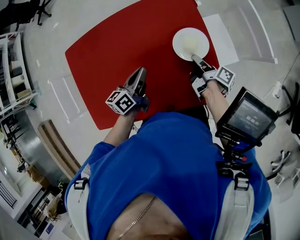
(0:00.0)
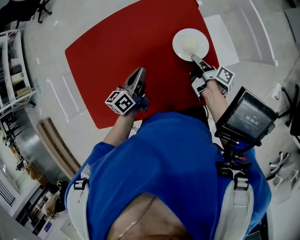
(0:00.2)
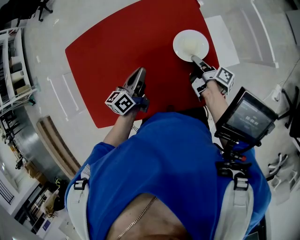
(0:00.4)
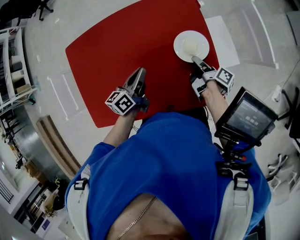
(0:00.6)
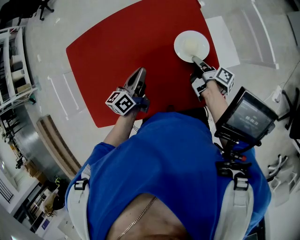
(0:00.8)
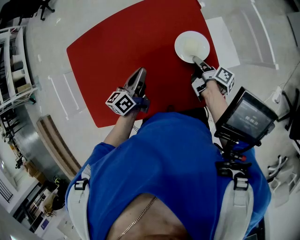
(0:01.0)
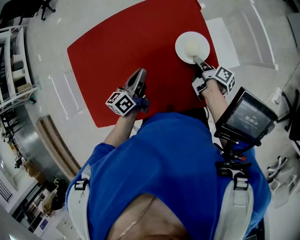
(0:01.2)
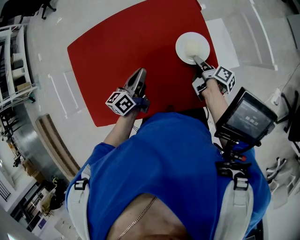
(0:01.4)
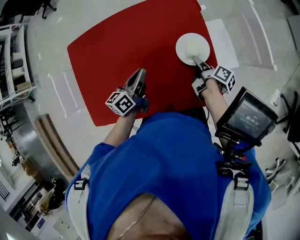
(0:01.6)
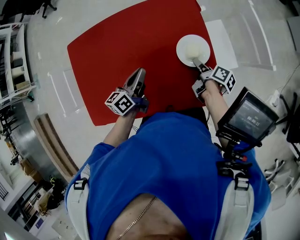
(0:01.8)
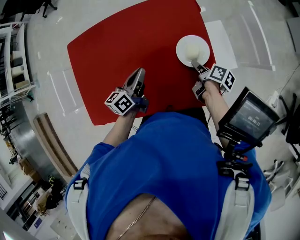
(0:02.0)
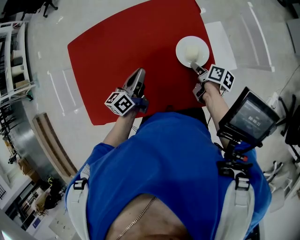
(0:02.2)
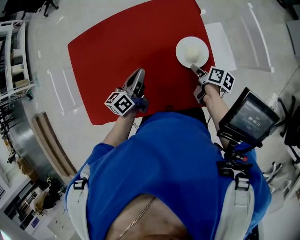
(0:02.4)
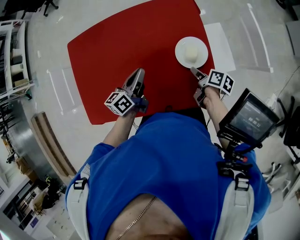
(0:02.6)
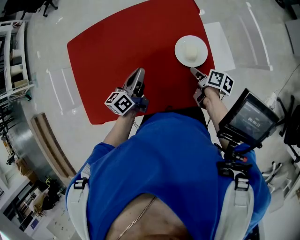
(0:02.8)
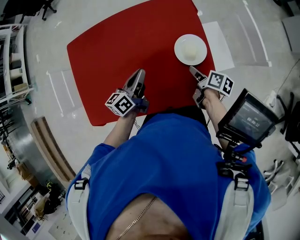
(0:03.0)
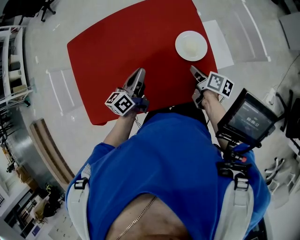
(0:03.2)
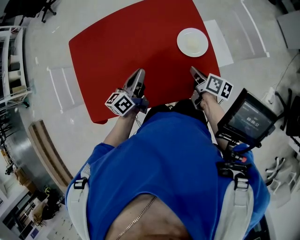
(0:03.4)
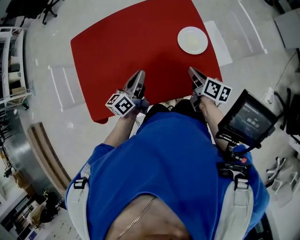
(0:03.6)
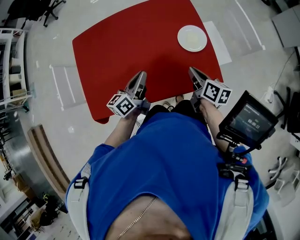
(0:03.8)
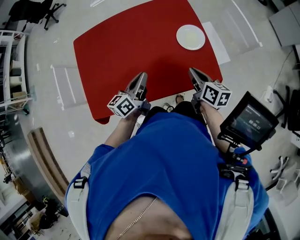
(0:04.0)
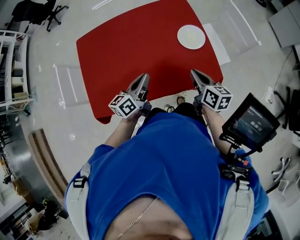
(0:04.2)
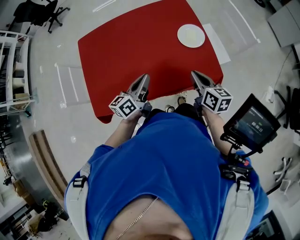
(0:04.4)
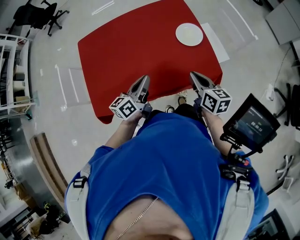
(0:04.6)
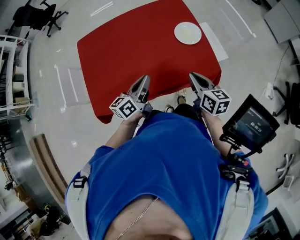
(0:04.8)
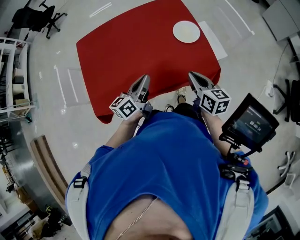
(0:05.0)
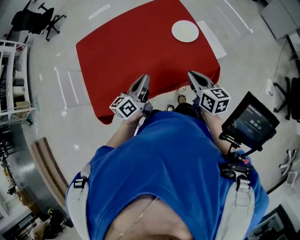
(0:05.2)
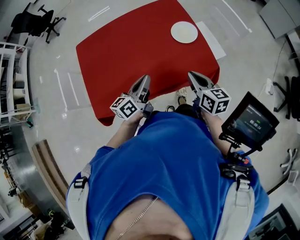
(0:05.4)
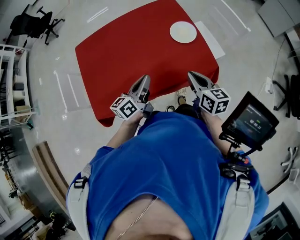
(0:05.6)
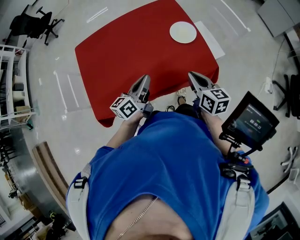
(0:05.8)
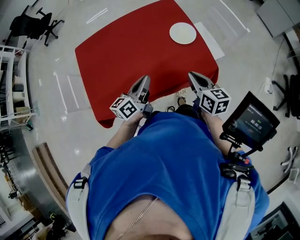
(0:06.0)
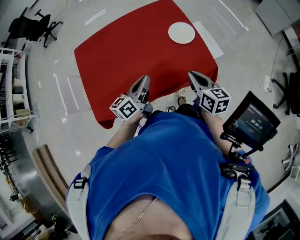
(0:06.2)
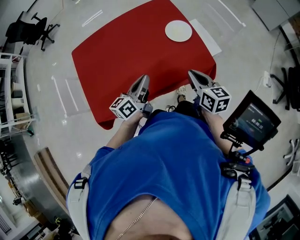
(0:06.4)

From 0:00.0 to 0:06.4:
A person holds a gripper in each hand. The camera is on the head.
From 0:03.2 to 0:04.8: The left gripper changes place by about 5 cm.

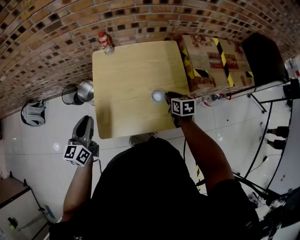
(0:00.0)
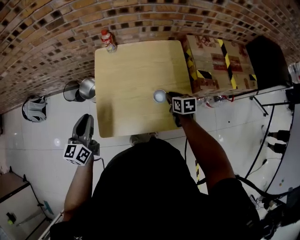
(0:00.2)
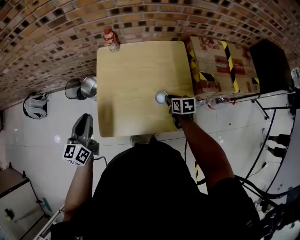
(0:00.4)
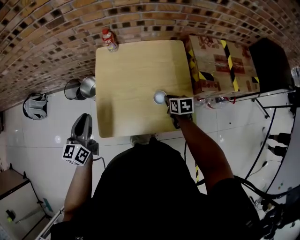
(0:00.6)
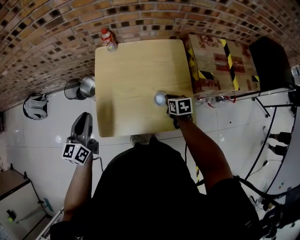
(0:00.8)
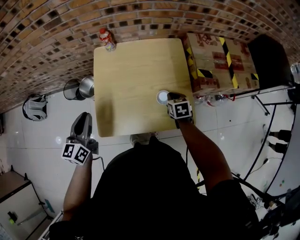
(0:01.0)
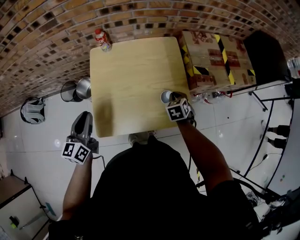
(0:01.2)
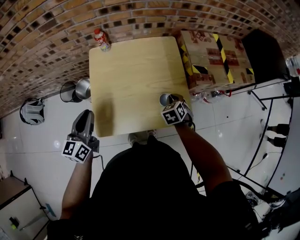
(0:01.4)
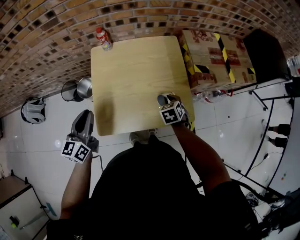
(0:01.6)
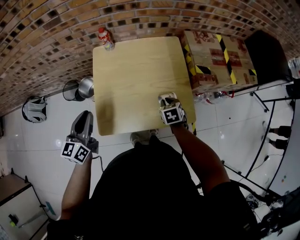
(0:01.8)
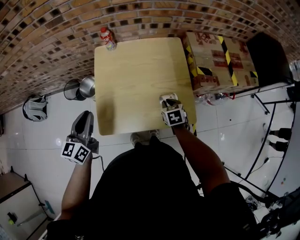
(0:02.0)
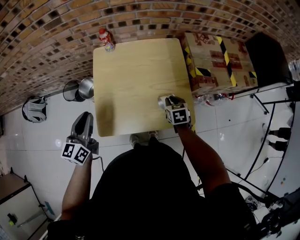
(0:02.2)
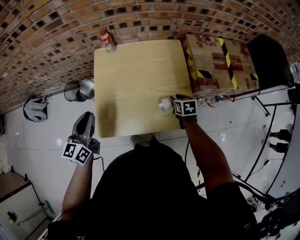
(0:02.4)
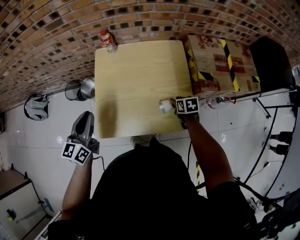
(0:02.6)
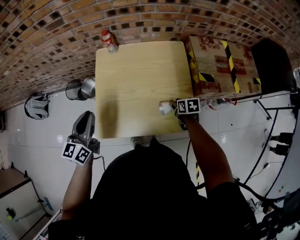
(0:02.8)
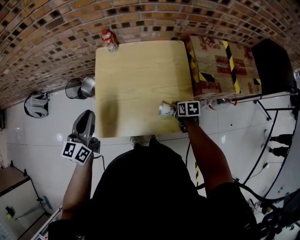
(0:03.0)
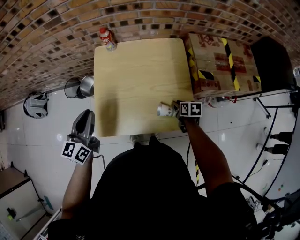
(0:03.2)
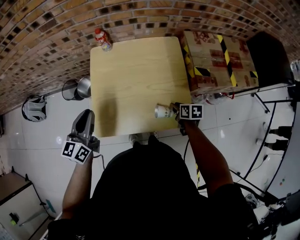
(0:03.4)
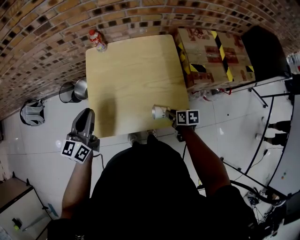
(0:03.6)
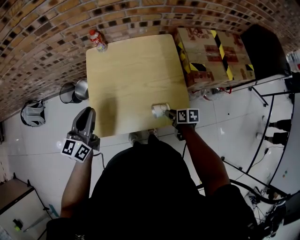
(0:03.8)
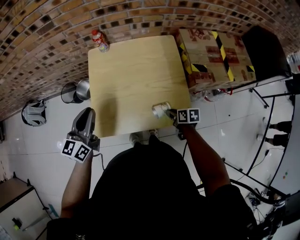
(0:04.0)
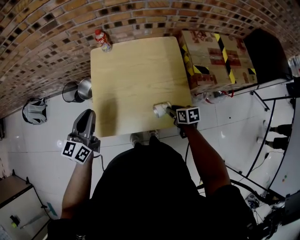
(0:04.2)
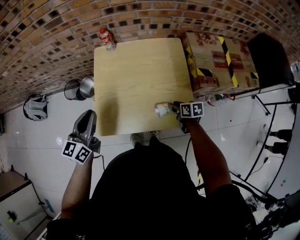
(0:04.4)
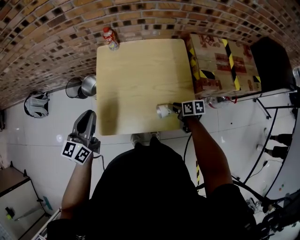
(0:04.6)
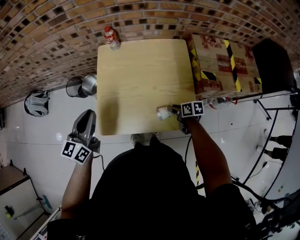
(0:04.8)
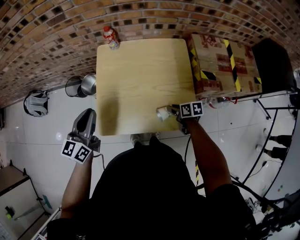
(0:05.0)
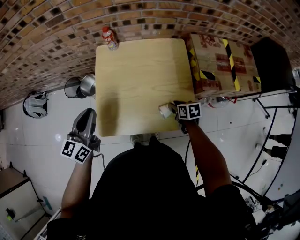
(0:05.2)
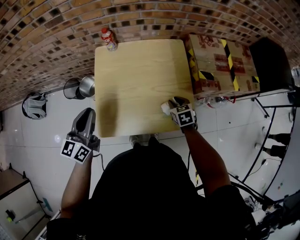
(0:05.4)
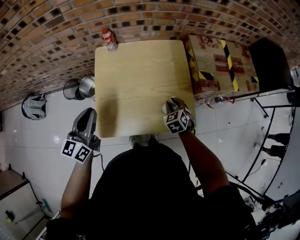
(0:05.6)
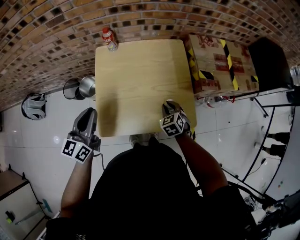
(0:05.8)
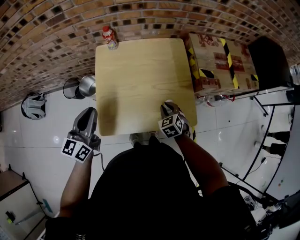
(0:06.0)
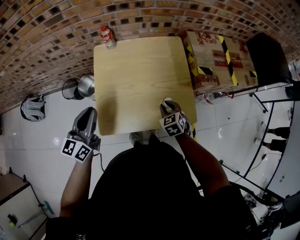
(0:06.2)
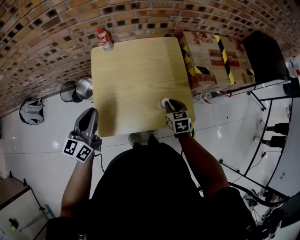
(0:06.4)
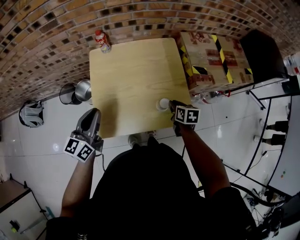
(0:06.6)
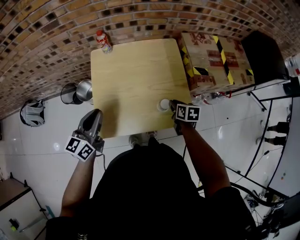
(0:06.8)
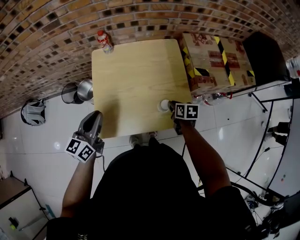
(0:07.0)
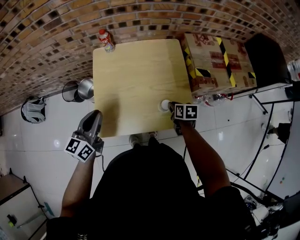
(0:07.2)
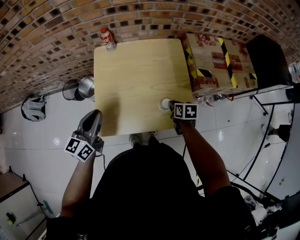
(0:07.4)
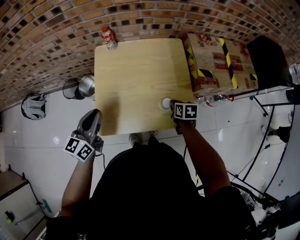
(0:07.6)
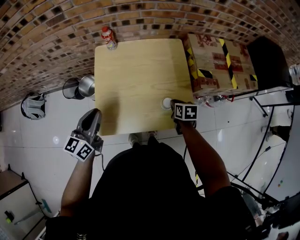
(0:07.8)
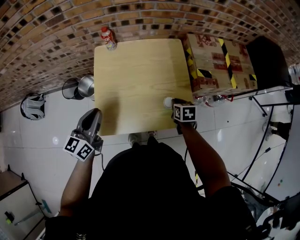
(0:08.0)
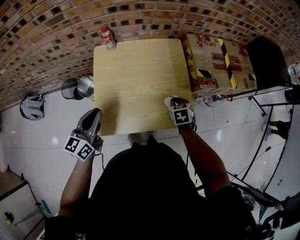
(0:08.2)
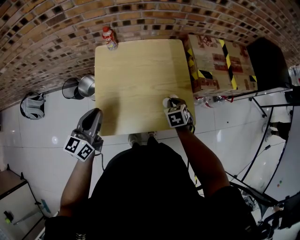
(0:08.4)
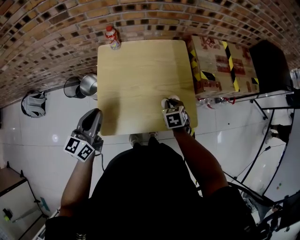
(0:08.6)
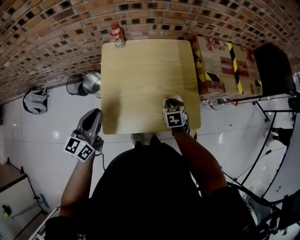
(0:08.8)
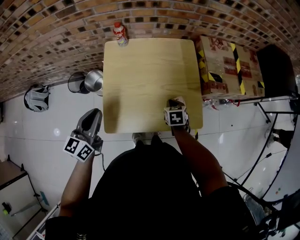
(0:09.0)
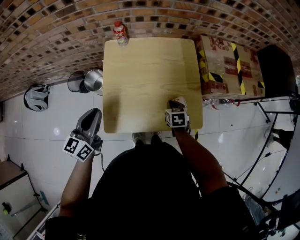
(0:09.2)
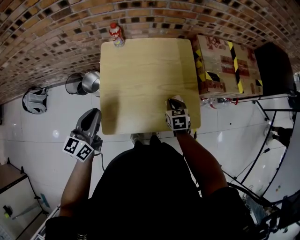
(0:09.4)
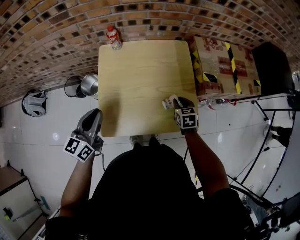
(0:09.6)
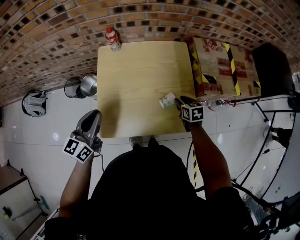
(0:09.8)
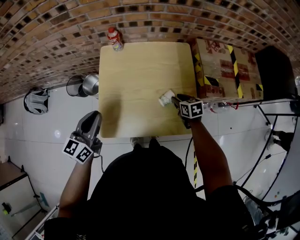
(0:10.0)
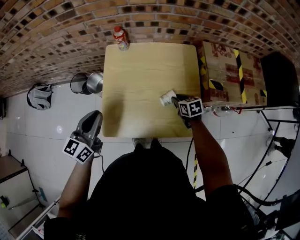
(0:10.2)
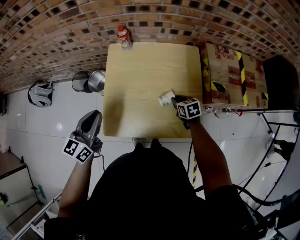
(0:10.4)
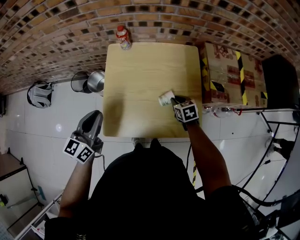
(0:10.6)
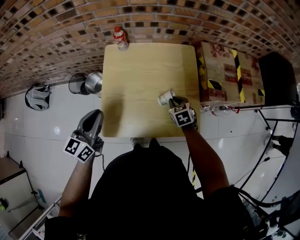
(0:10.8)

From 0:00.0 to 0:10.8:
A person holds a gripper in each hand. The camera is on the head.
From 0:00.0 to 0:01.6: The right gripper turns by some 30 degrees.
From 0:01.6 to 0:03.0: The right gripper is displaced downward and to the right by some 10 cm, and rotates some 30 degrees.
From 0:03.0 to 0:04.6: The right gripper travels backward and back again, about 10 cm each way.
From 0:04.6 to 0:06.2: The right gripper shifts by about 10 cm, twists roughly 40 degrees counterclockwise, seen from behind, and closes.
From 0:06.2 to 0:07.8: The right gripper travels to the right by roughly 5 cm, and rotates approximately 40 degrees.
From 0:07.8 to 0:09.2: The right gripper travels to the left by approximately 5 cm.
From 0:09.2 to 0:10.8: The right gripper reaches some 10 cm to the right, then returns, and opens, then closes once more.

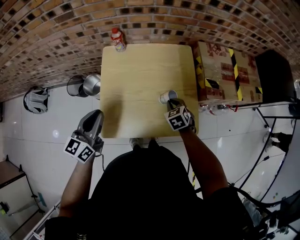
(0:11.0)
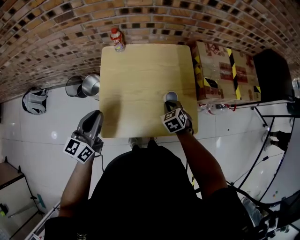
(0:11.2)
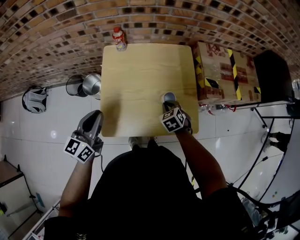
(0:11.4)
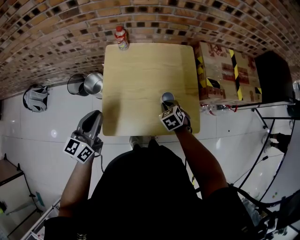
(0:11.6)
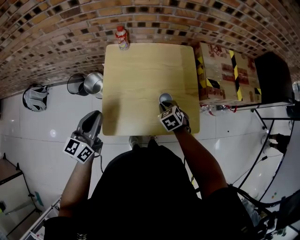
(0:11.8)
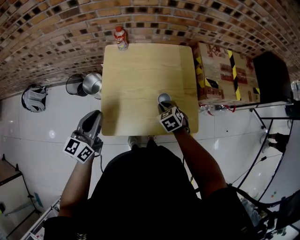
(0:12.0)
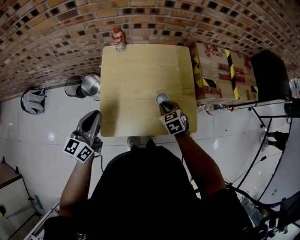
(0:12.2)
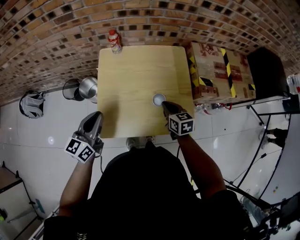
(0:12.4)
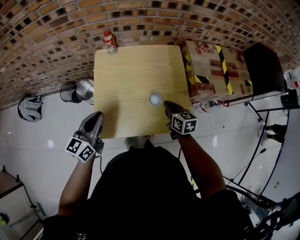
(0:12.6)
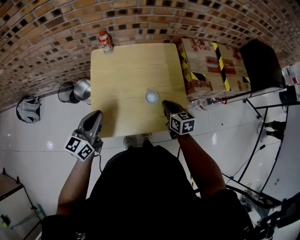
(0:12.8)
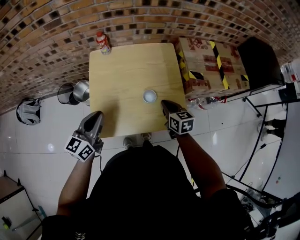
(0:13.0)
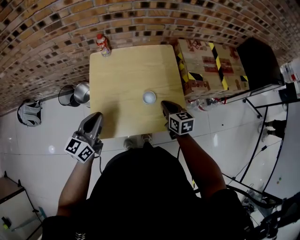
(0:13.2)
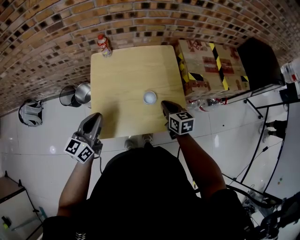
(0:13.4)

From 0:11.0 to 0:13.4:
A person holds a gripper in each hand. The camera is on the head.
From 0:11.0 to 0:12.2: The right gripper changes place by roughly 5 cm.
From 0:12.2 to 0:13.4: Both grippers move to the right, approximately 5 cm. The right gripper swivels approximately 30 degrees.

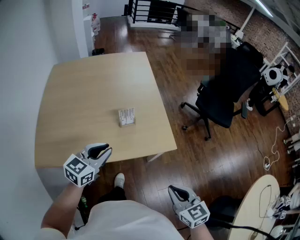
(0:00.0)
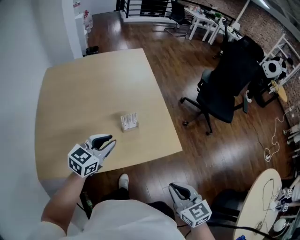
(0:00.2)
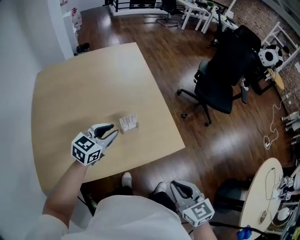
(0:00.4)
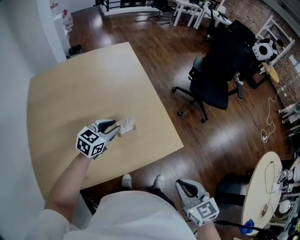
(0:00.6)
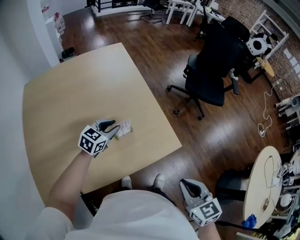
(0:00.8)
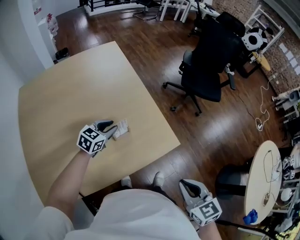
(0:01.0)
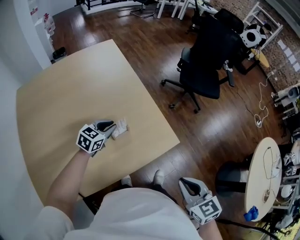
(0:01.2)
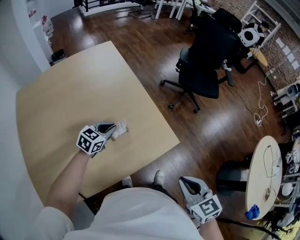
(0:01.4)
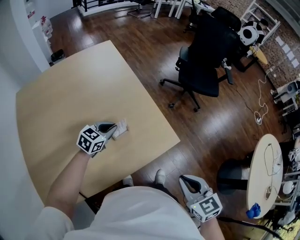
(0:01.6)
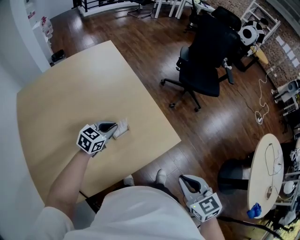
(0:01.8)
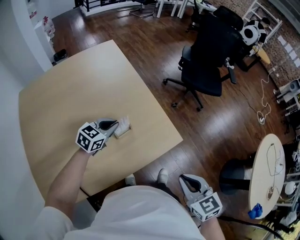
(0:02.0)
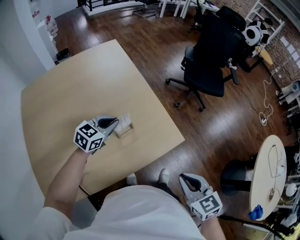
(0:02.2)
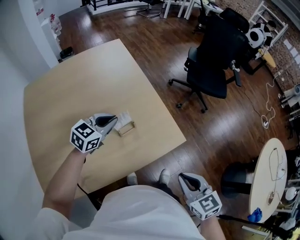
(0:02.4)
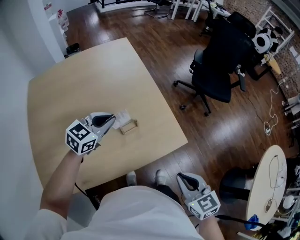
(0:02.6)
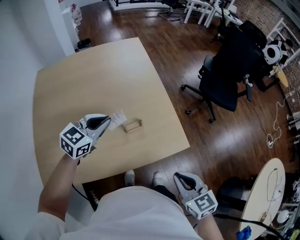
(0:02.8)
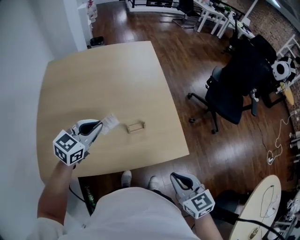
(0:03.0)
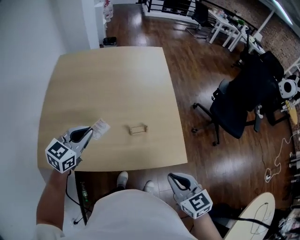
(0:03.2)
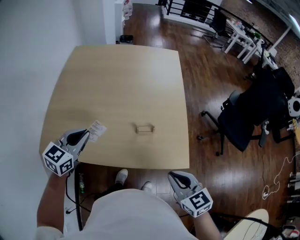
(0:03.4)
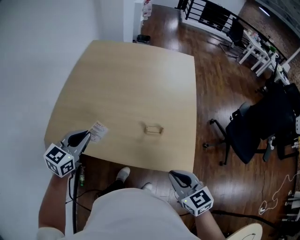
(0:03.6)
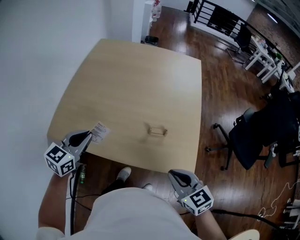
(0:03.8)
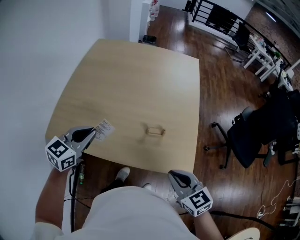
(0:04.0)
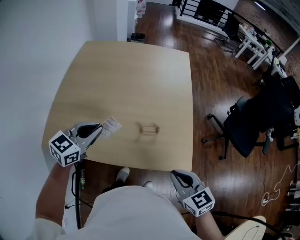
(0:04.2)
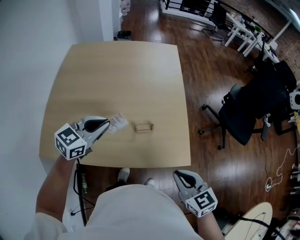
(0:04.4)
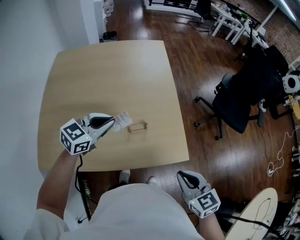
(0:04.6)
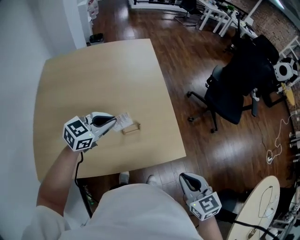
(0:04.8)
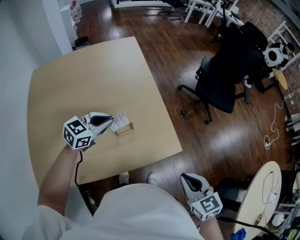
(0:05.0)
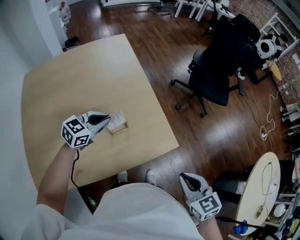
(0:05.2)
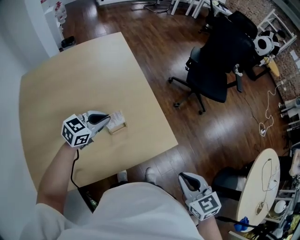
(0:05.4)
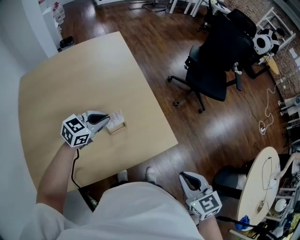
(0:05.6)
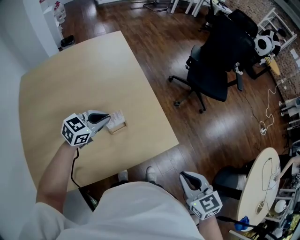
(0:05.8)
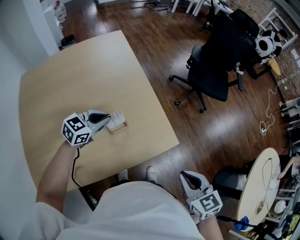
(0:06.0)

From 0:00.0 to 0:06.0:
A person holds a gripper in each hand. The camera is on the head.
From 0:00.0 to 0:01.6: The right gripper goes some 10 cm forward and to the left; the left gripper shifts approximately 25 cm forward and downward, and rotates some 30 degrees.
From 0:01.6 to 0:03.0: The right gripper shifts by about 5 cm, and rotates about 20 degrees. Meanwhile the left gripper goes about 15 cm upward, and turns by roughly 20 degrees.
From 0:04.4 to 0:06.0: The right gripper ends up approximately 5 cm from where it was, and changes its angle by some 30 degrees, while the left gripper changes place by some 15 cm, and turns by roughly 30 degrees.
